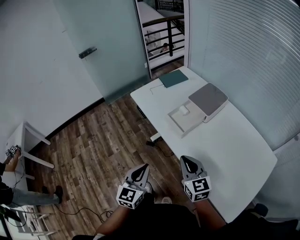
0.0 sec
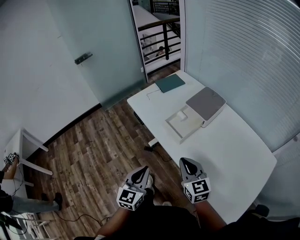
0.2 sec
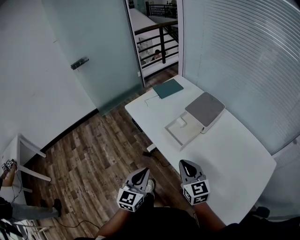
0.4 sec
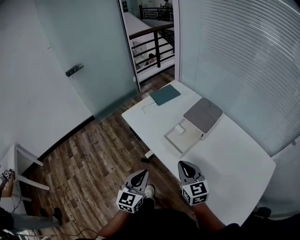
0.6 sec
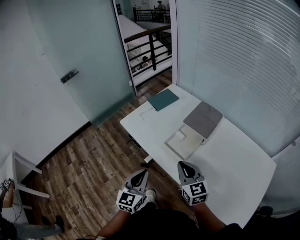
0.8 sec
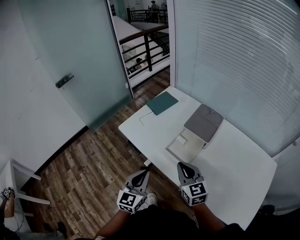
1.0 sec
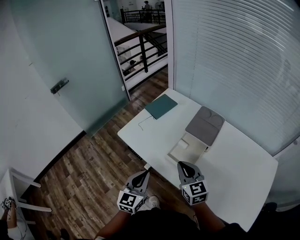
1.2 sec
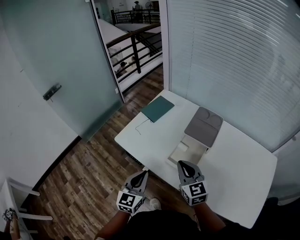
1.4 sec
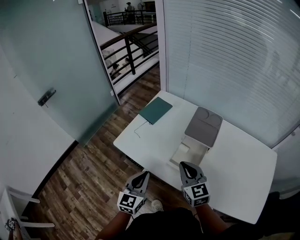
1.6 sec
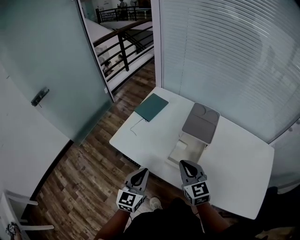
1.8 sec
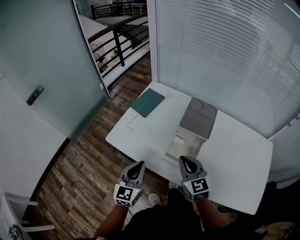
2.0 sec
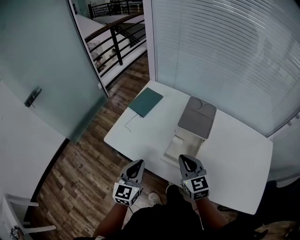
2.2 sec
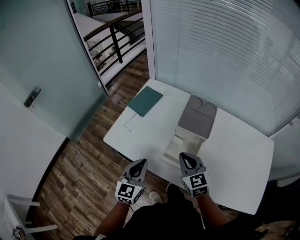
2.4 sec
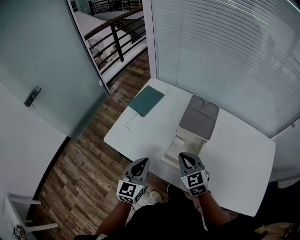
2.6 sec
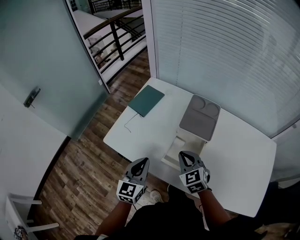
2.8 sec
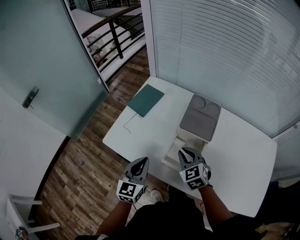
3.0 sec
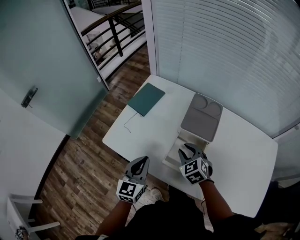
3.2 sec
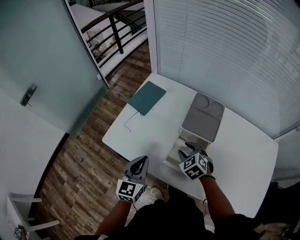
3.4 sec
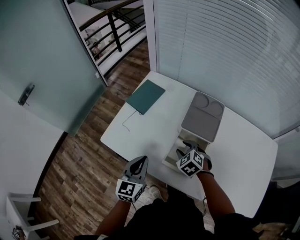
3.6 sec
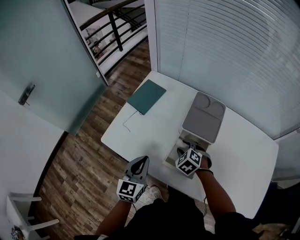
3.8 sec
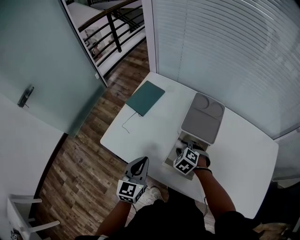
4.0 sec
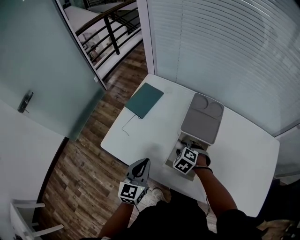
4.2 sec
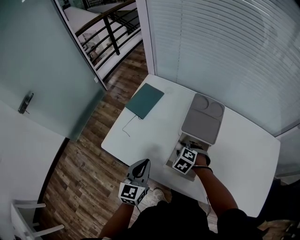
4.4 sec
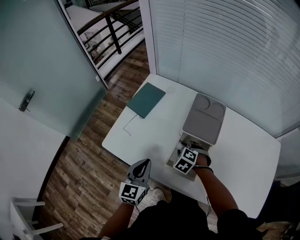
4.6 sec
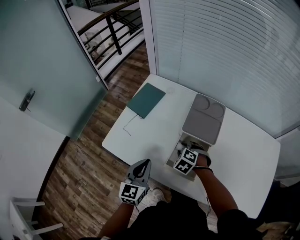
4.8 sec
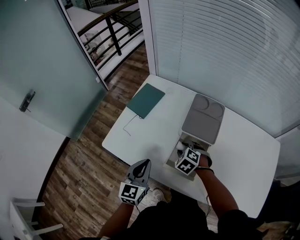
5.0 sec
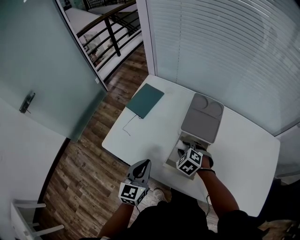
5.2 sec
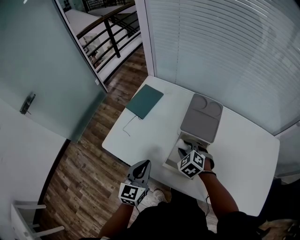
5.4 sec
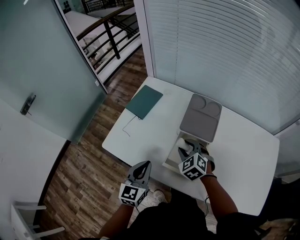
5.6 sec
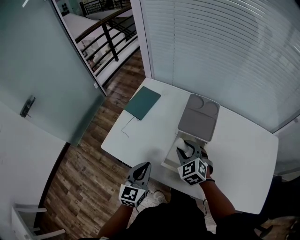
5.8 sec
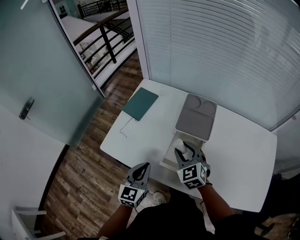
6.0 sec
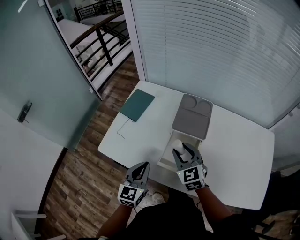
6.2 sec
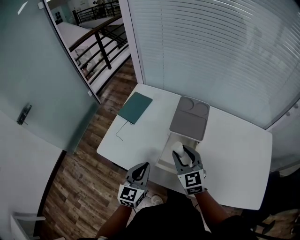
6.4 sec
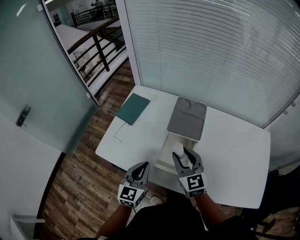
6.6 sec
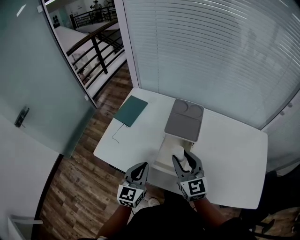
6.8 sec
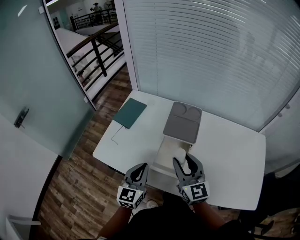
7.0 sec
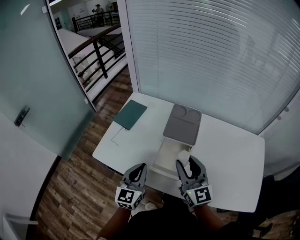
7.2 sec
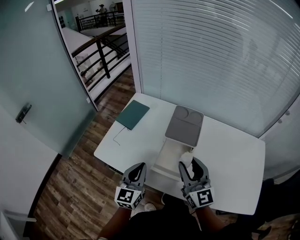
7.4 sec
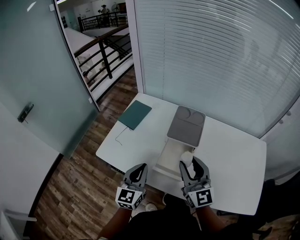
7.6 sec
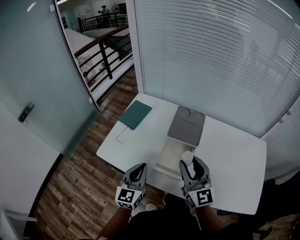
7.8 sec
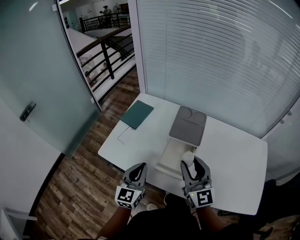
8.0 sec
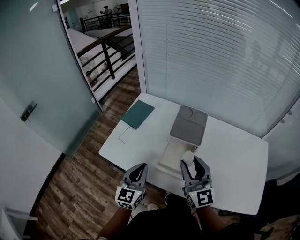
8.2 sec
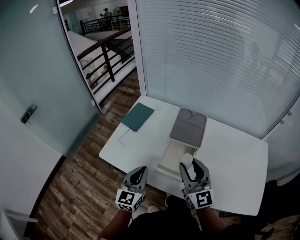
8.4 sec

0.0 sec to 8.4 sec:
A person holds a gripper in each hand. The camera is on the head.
0.0 sec to 1.4 sec: The two grippers go roughly 25 cm forward.
1.4 sec to 2.8 sec: The right gripper shifts some 10 cm downward and forward, and changes its angle by approximately 20 degrees. The left gripper is displaced forward by some 10 cm.
2.8 sec to 4.2 sec: The right gripper is displaced downward and forward by approximately 15 cm, tips its fingers downward by some 30 degrees, and opens its fingers.
4.2 sec to 5.6 sec: The right gripper moves upward, about 10 cm, and turns by about 20 degrees.
5.6 sec to 7.0 sec: The left gripper shifts by roughly 5 cm; the right gripper goes some 20 cm upward and backward, and tips its fingers upward by some 40 degrees.
7.0 sec to 8.4 sec: The grippers stay close to where they were, moving slightly.

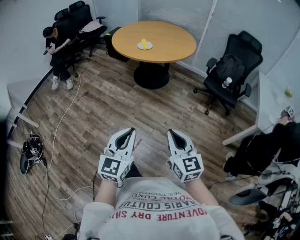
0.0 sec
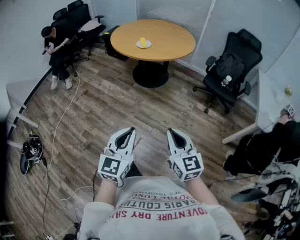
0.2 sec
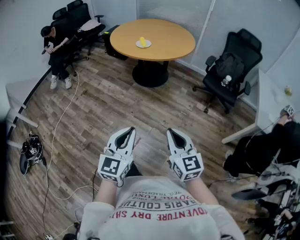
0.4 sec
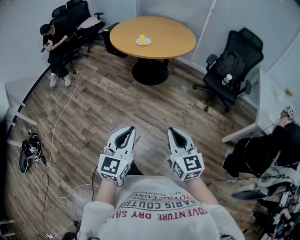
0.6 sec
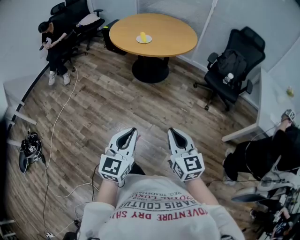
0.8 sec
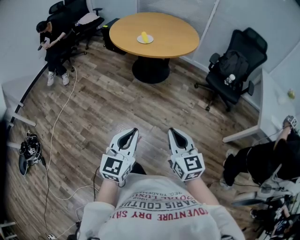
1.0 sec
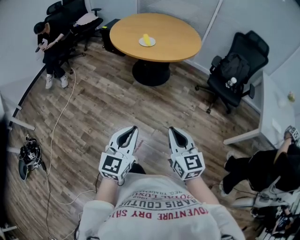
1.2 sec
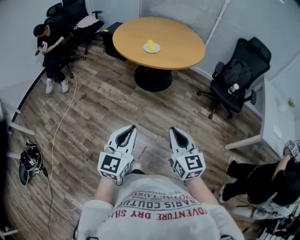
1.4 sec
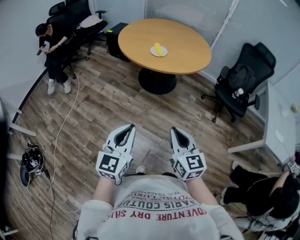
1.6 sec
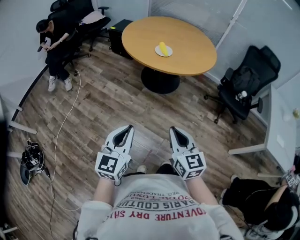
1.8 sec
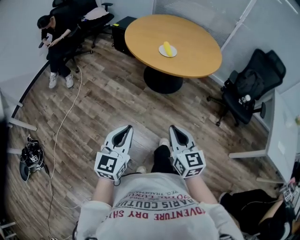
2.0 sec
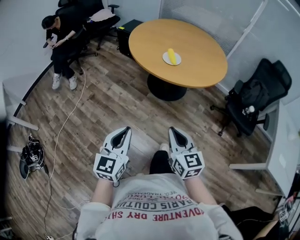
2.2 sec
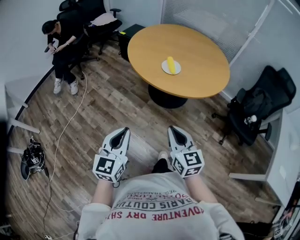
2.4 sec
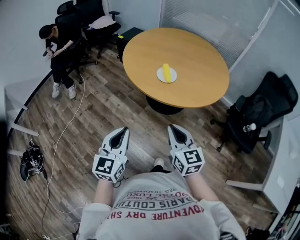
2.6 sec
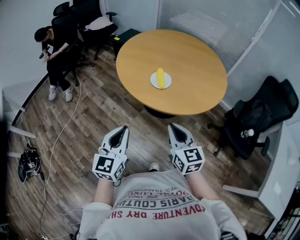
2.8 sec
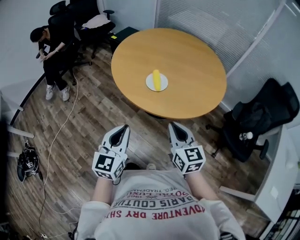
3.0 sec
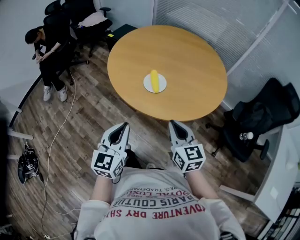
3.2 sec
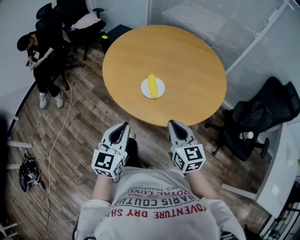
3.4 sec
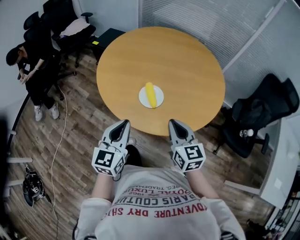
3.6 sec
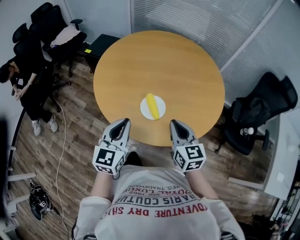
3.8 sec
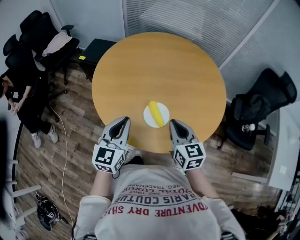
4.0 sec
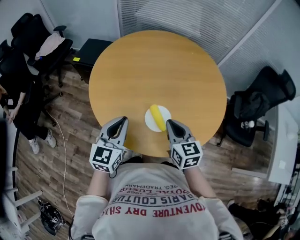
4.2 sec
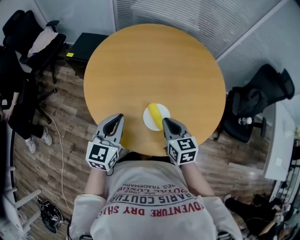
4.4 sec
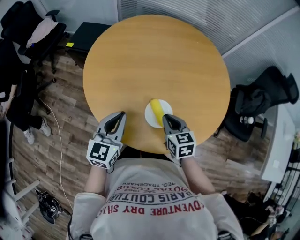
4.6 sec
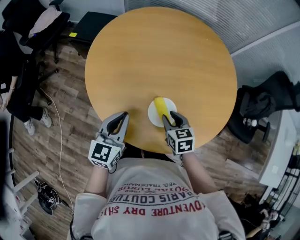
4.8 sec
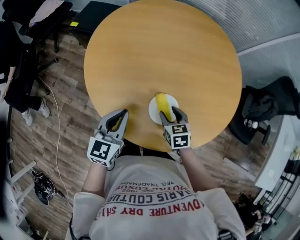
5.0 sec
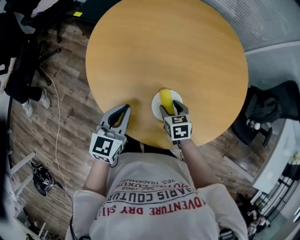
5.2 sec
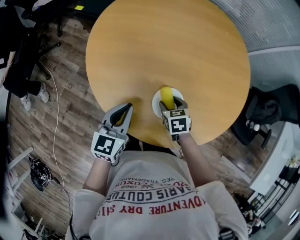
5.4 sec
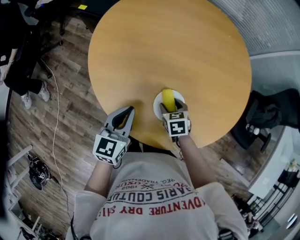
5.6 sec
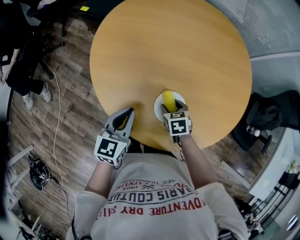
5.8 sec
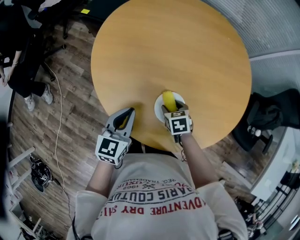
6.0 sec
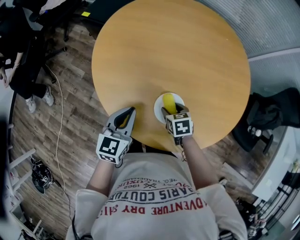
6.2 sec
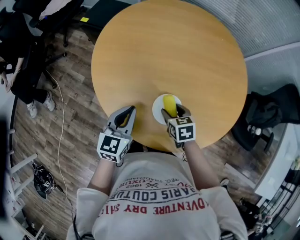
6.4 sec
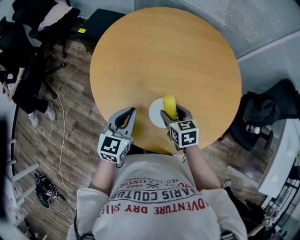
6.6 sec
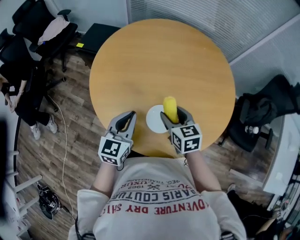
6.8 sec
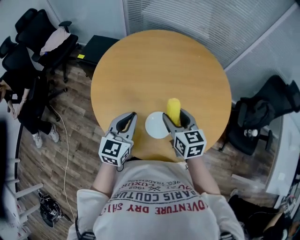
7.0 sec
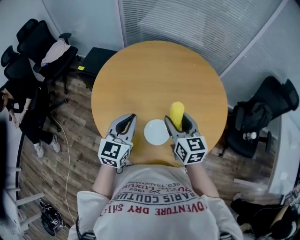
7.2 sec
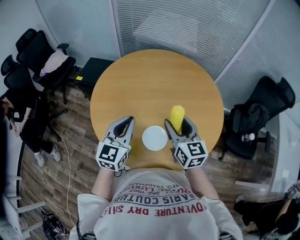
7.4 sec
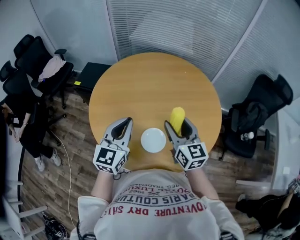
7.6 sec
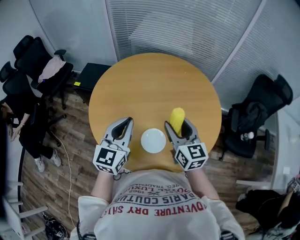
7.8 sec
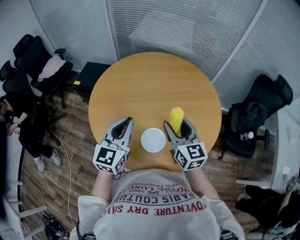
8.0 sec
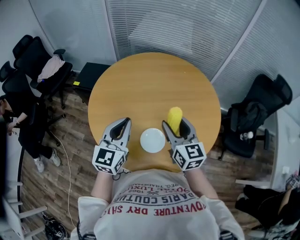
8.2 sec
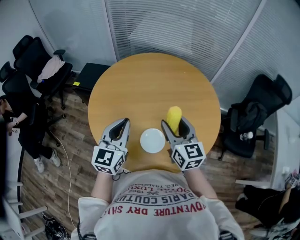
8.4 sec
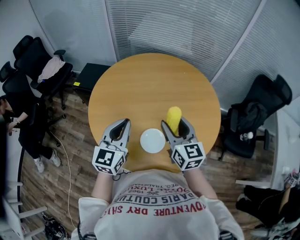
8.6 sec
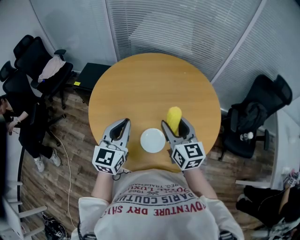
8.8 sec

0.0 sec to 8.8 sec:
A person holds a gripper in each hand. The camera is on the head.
0.0 sec to 1.4 sec: Both grippers move forward and to the left, roughly 20 cm.
1.4 sec to 3.0 sec: Both grippers move forward, roughly 40 cm.
3.0 sec to 4.4 sec: The two grippers go approximately 35 cm forward. The right gripper turns by roughly 30 degrees. The left gripper rotates roughly 20 degrees.
4.4 sec to 5.8 sec: The right gripper shifts about 20 cm downward, angles its fingers downward, by some 30 degrees, and opens up; the left gripper heads downward, covering roughly 10 cm.
5.8 sec to 7.4 sec: The left gripper heads upward, covering roughly 15 cm, and rotates roughly 20 degrees. Meanwhile the right gripper is displaced upward by some 30 cm, and tilts its fingers about 50 degrees upward.
7.4 sec to 8.8 sec: The grippers stay close to where they were, moving slightly.

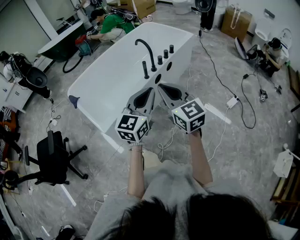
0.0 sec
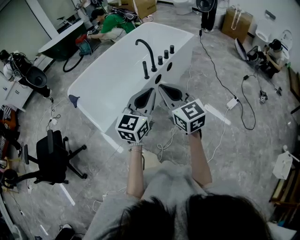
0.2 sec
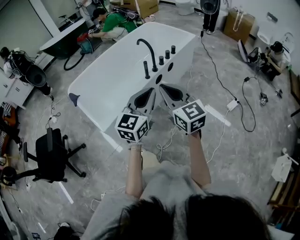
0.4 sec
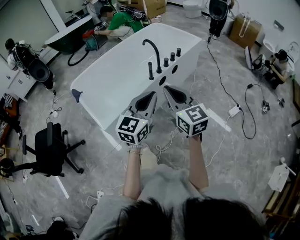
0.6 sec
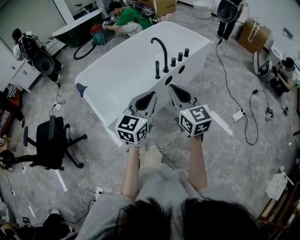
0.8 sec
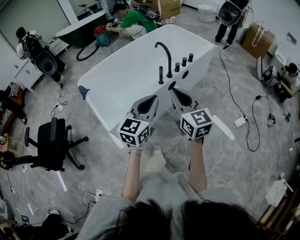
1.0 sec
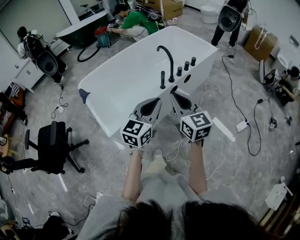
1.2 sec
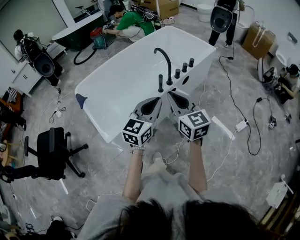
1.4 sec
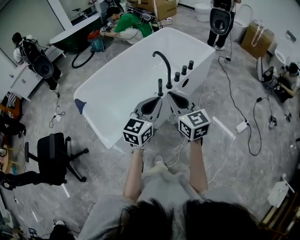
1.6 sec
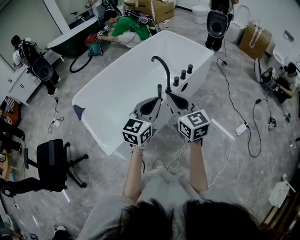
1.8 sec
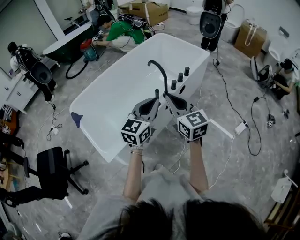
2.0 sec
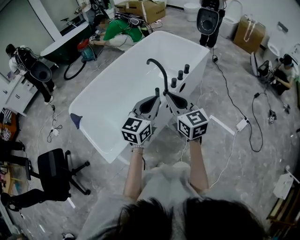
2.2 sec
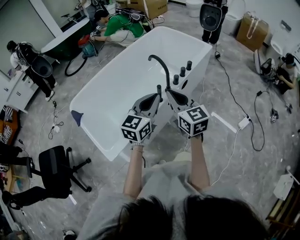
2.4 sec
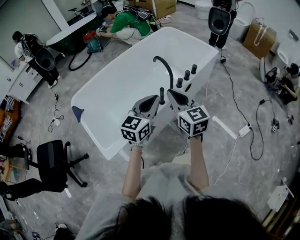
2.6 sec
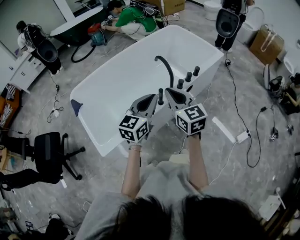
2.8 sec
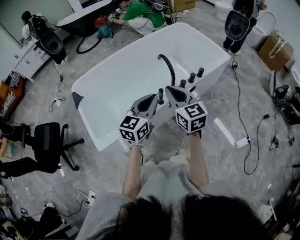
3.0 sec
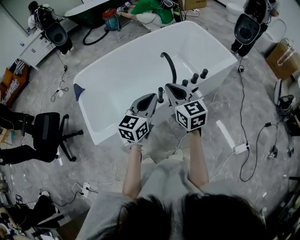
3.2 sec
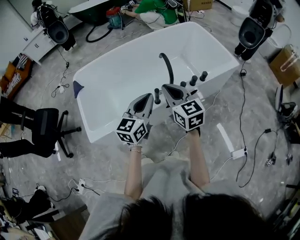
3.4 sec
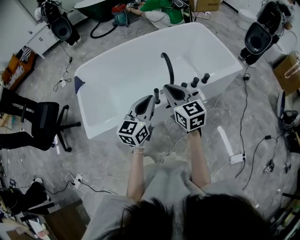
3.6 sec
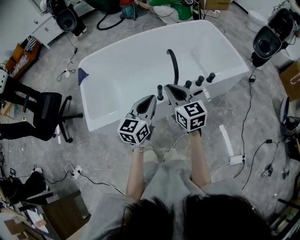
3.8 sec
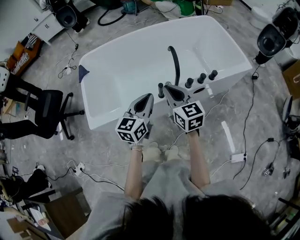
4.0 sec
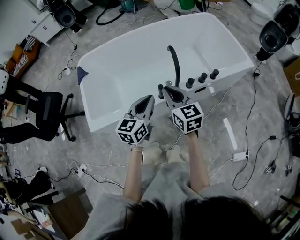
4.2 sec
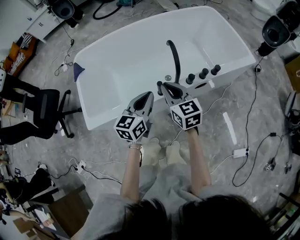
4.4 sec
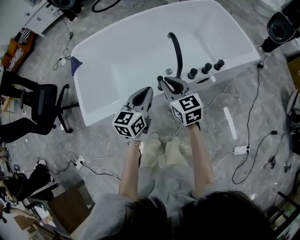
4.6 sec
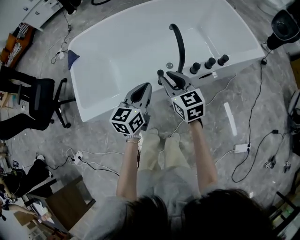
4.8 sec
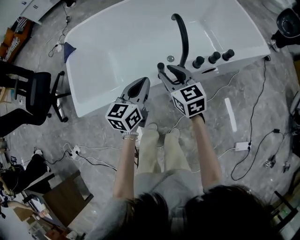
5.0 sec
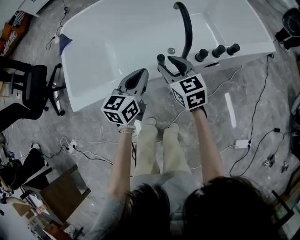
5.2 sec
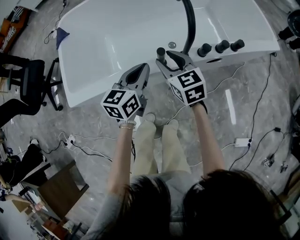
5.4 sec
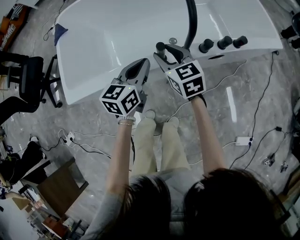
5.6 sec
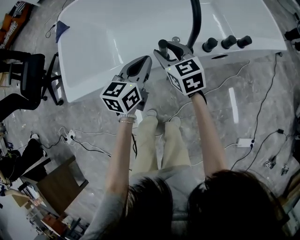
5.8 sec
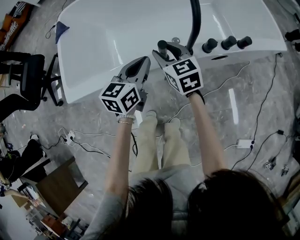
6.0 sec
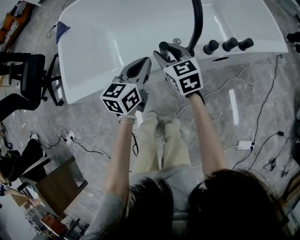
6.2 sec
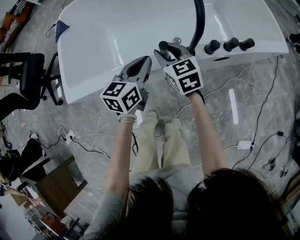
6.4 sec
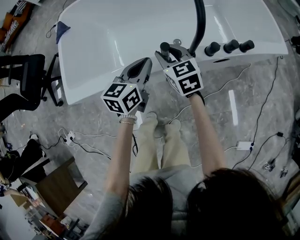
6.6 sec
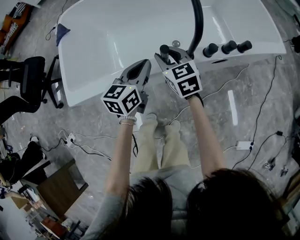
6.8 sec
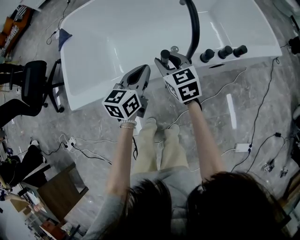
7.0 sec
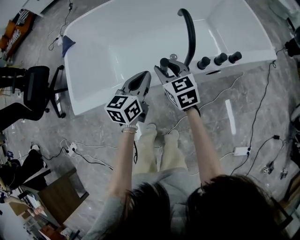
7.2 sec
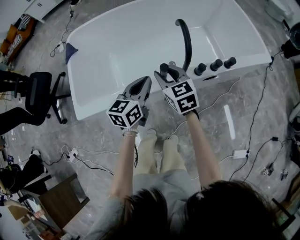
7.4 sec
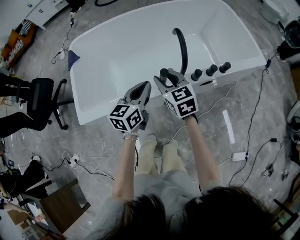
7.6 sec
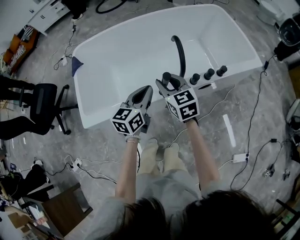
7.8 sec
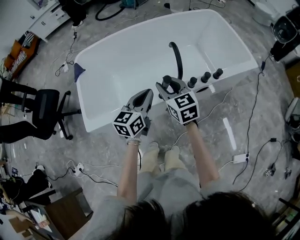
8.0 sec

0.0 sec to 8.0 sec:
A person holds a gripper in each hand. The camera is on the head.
0.0 sec to 1.6 sec: Both grippers travel together forward, about 20 cm.
1.6 sec to 3.2 sec: Both grippers move forward, roughly 20 cm.
3.2 sec to 4.8 sec: The grippers both shift downward and forward by some 15 cm. The left gripper turns by approximately 20 degrees.
4.8 sec to 6.4 sec: The right gripper goes about 15 cm downward and forward. Meanwhile the left gripper moves downward, approximately 10 cm.
6.4 sec to 8.0 sec: The grippers both shift upward by roughly 20 cm.
